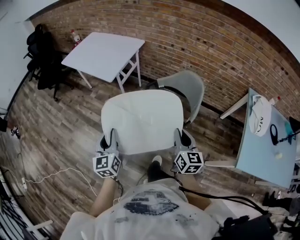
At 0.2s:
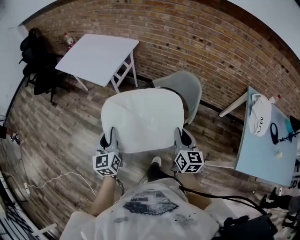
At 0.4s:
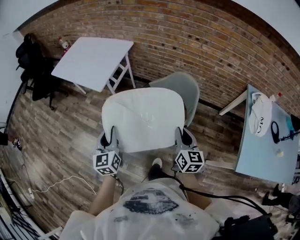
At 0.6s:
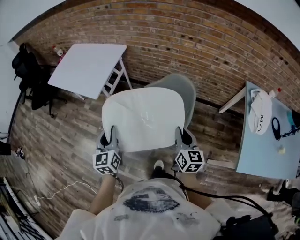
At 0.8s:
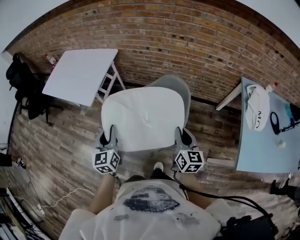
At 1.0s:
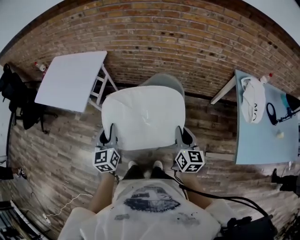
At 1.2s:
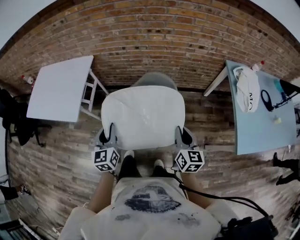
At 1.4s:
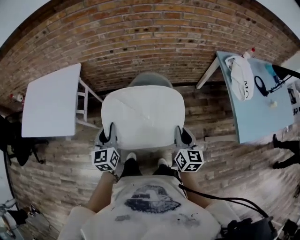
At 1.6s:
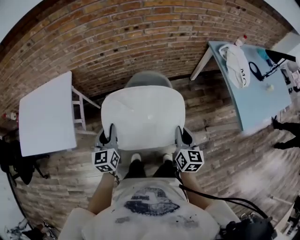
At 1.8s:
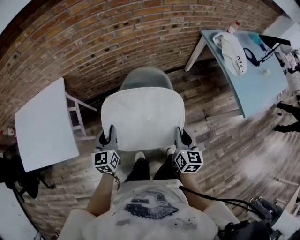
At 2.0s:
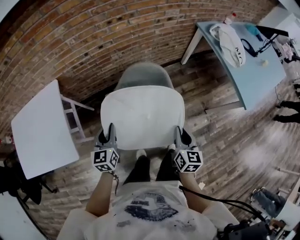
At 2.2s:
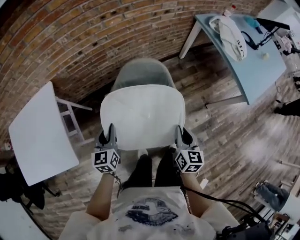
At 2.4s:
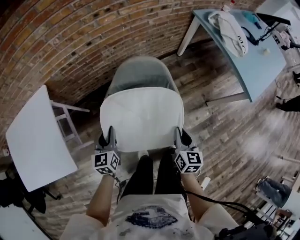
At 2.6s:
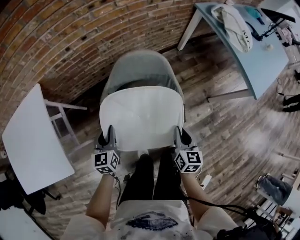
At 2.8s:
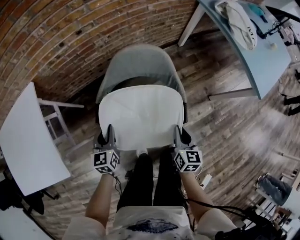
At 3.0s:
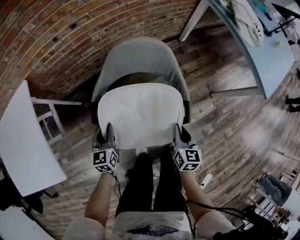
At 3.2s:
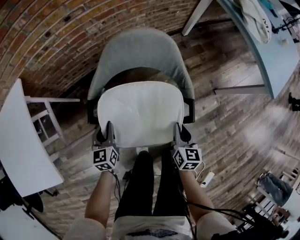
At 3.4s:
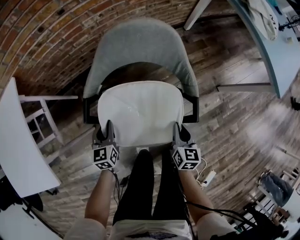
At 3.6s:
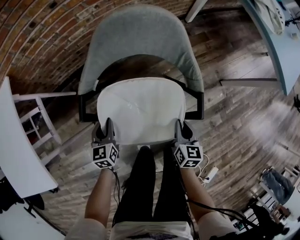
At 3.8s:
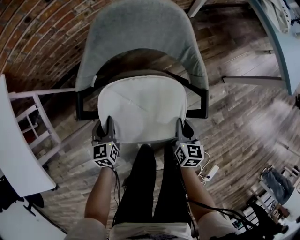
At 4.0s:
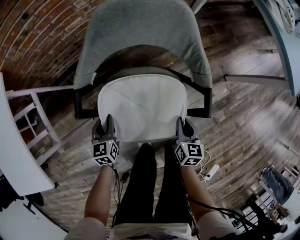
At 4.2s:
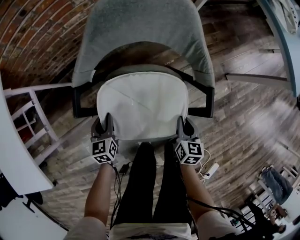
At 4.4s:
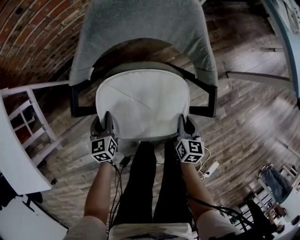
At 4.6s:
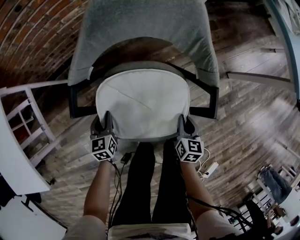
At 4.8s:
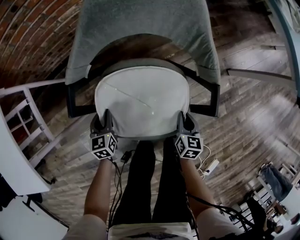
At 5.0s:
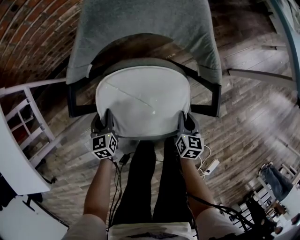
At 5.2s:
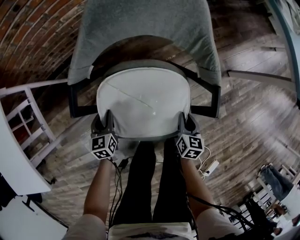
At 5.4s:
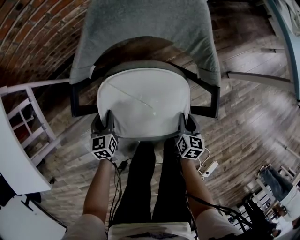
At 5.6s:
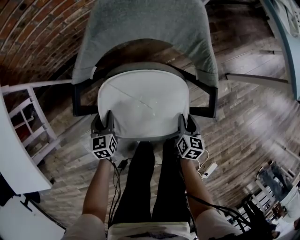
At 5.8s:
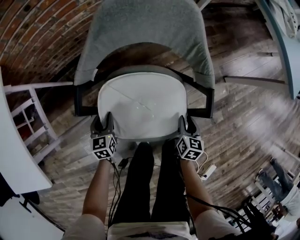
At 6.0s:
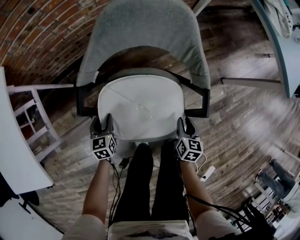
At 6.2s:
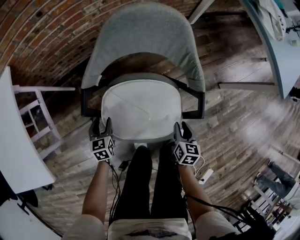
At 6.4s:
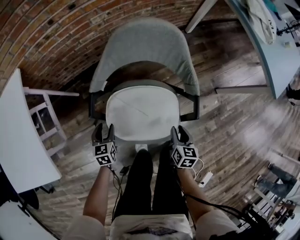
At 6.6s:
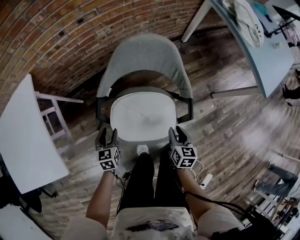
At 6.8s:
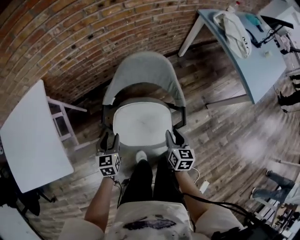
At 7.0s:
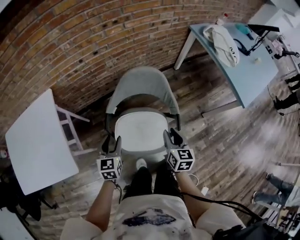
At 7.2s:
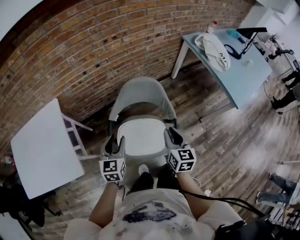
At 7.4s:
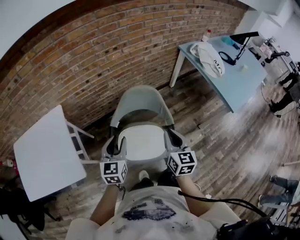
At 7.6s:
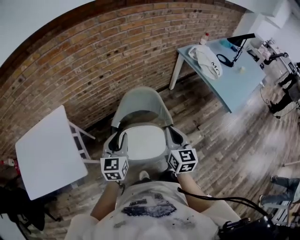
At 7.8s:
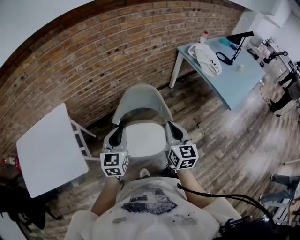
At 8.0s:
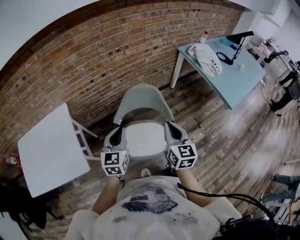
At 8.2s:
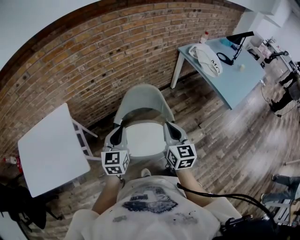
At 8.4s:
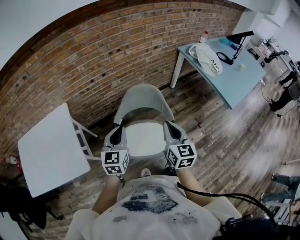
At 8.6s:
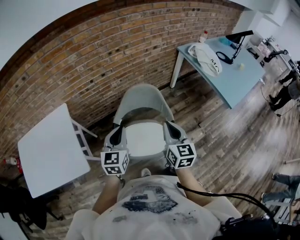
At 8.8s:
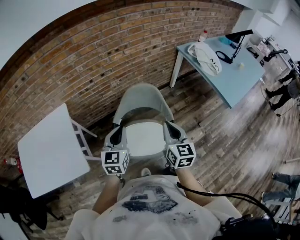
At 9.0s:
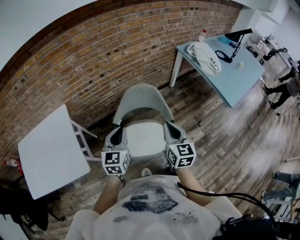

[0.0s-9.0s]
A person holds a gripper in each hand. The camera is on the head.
0.0s to 1.6s: The right gripper shifts by about 20 cm, and changes its angle by approximately 40 degrees, while the left gripper changes place by approximately 40 cm, and turns by approximately 40 degrees.
1.6s to 3.0s: Both grippers move downward, about 30 cm.
3.0s to 4.4s: The grippers both shift downward by approximately 20 cm.
4.4s to 6.0s: The right gripper opens up.
6.0s to 7.6s: Both grippers move upward, roughly 60 cm. The right gripper angles its fingers upward, by approximately 30 degrees, and closes; the left gripper swivels about 30 degrees.
7.6s to 9.0s: The left gripper closes up.

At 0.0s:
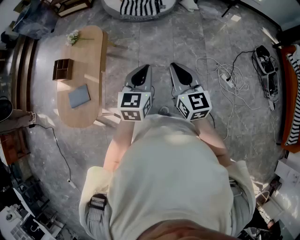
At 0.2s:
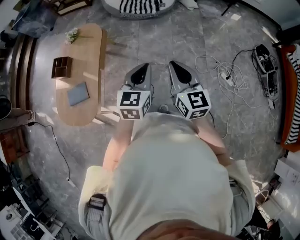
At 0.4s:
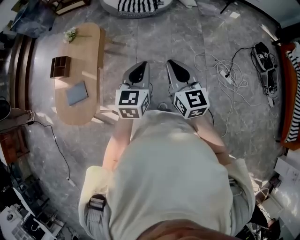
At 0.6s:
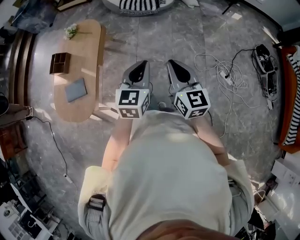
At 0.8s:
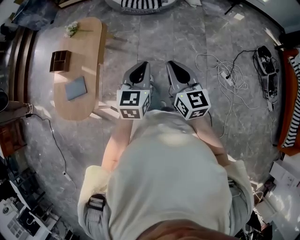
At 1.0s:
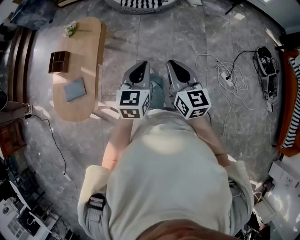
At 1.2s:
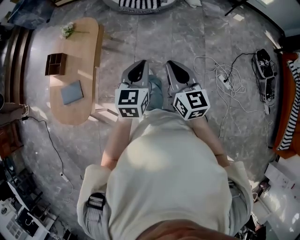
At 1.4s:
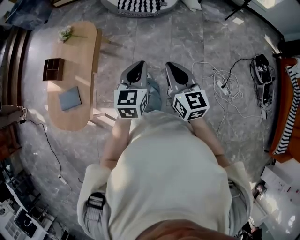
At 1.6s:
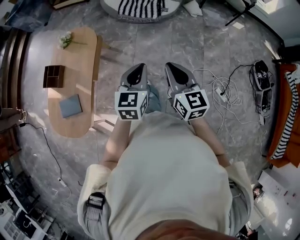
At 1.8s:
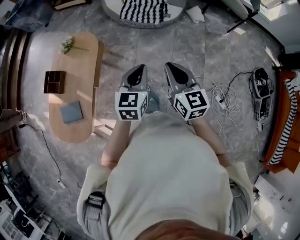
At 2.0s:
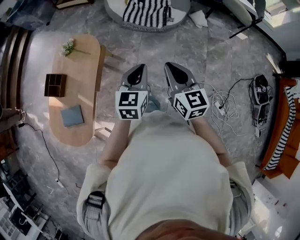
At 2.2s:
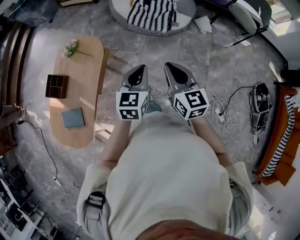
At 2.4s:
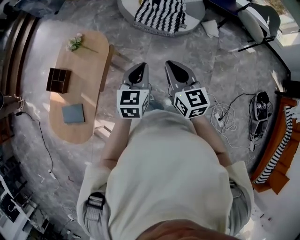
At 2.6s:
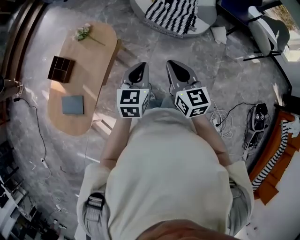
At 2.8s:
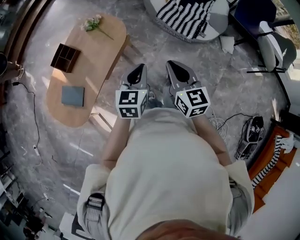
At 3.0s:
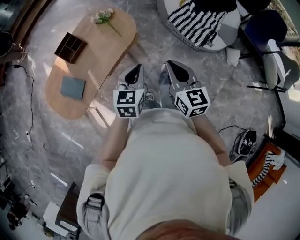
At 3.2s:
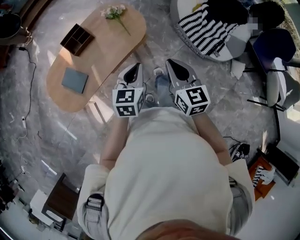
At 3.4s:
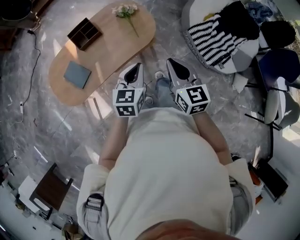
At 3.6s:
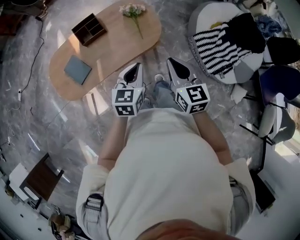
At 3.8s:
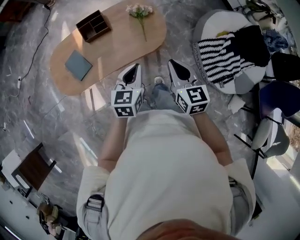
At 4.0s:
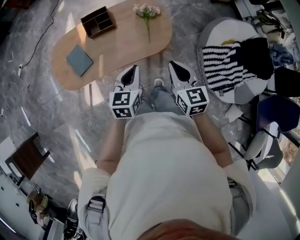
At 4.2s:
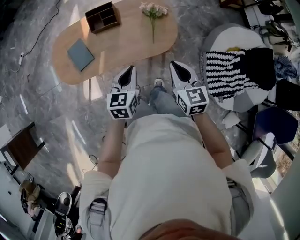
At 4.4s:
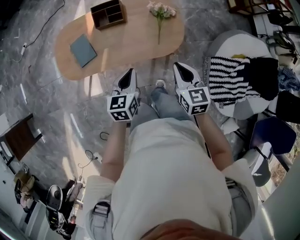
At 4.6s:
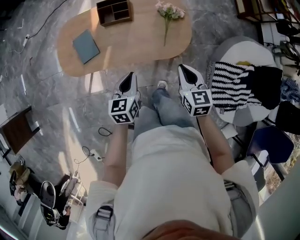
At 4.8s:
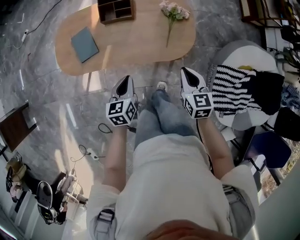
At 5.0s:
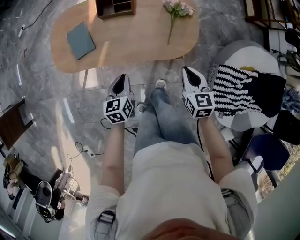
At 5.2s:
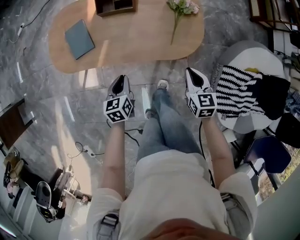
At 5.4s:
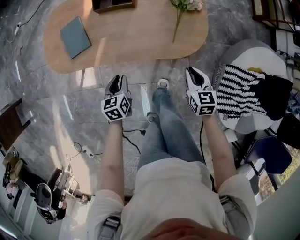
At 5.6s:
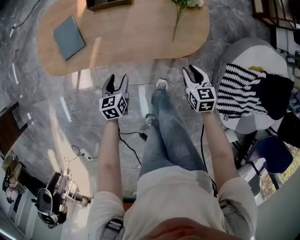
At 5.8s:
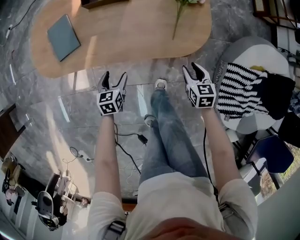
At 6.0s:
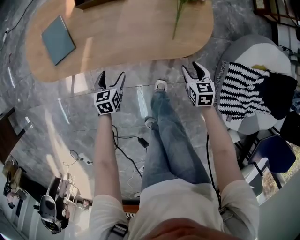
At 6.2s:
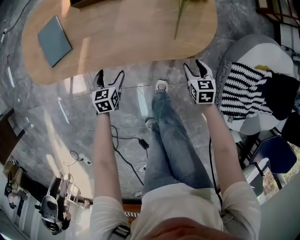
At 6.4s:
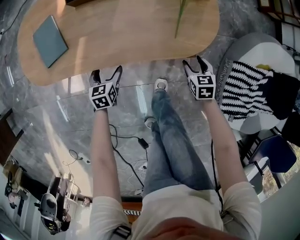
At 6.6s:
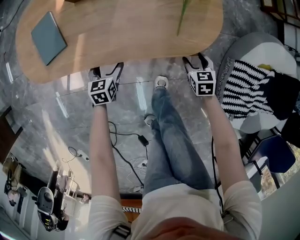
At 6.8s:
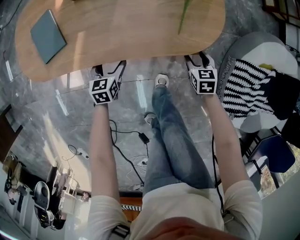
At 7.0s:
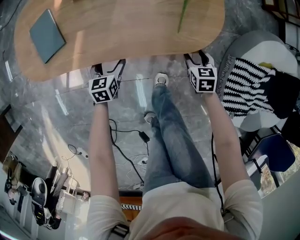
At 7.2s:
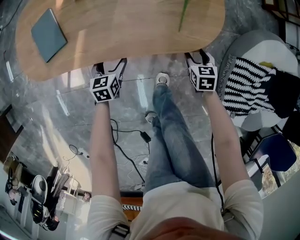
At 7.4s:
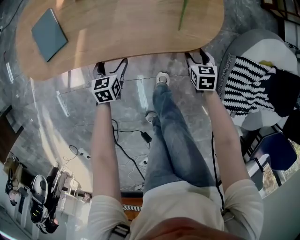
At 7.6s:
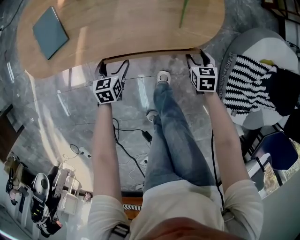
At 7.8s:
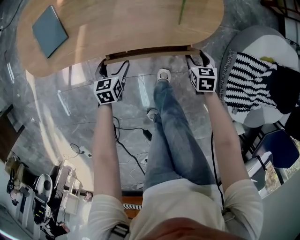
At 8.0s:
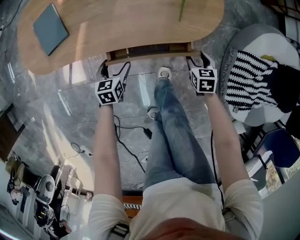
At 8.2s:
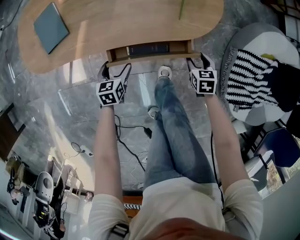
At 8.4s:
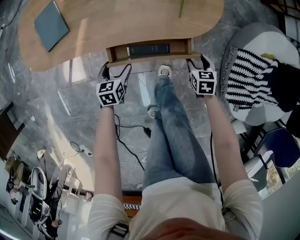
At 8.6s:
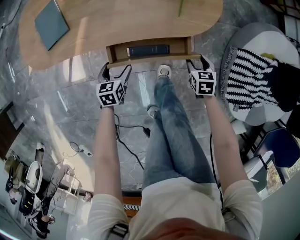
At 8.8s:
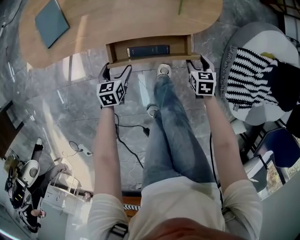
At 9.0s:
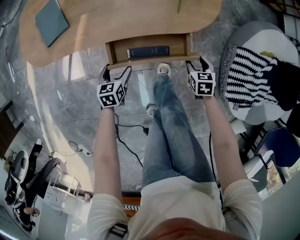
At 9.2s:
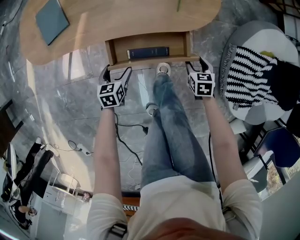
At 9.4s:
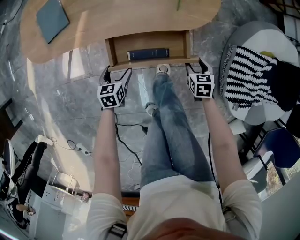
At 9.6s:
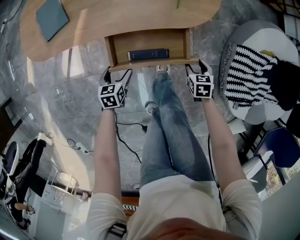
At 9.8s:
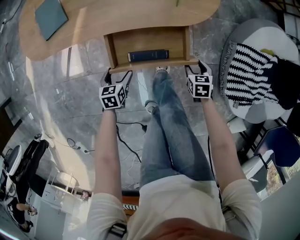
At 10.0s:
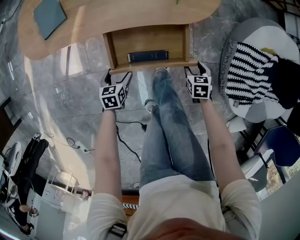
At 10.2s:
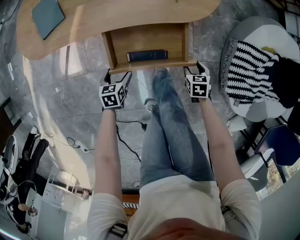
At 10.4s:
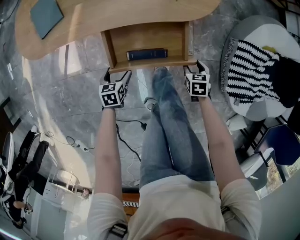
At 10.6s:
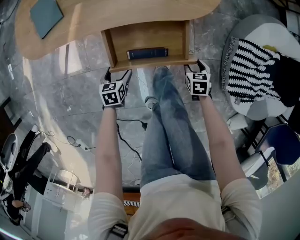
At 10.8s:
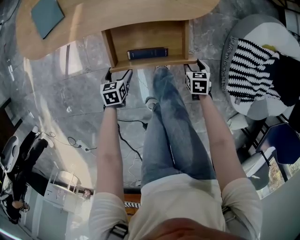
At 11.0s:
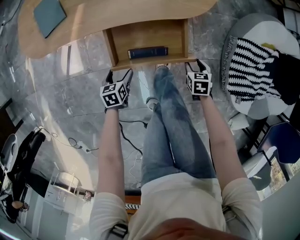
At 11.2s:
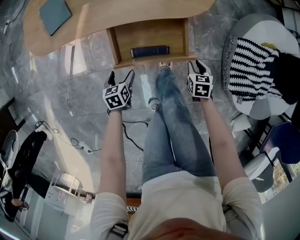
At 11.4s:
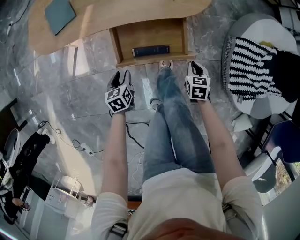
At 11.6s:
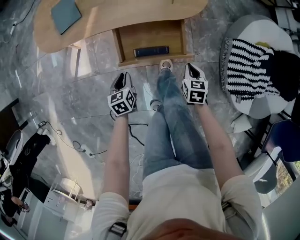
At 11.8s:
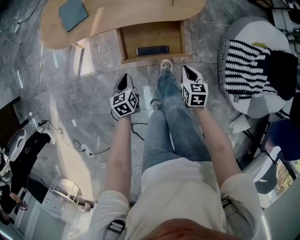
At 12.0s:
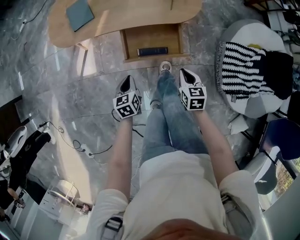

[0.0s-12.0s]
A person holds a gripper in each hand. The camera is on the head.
0.0s to 1.6s: Both grippers travel together forward, about 15 cm.
1.6s to 3.0s: The left gripper ends up approximately 30 cm from where it was, and changes its angle by about 30 degrees. The right gripper changes place by roughly 30 cm, and swivels about 30 degrees.
3.0s to 4.4s: The left gripper ends up roughly 20 cm from where it was, and rotates roughly 50 degrees; the right gripper changes place by approximately 30 cm, and turns by approximately 40 degrees.
4.4s to 6.0s: Both grippers travel together downward, roughly 40 cm. The right gripper changes its angle by about 20 degrees, and opens; the left gripper opens its fingers.
6.0s to 7.6s: The right gripper goes approximately 5 cm downward.
7.6s to 9.0s: The grippers both shift backward by some 10 cm.
9.0s to 10.4s: The two grippers go some 5 cm backward.
10.4s to 12.0s: The two grippers go roughly 20 cm upward. The left gripper changes its angle by roughly 20 degrees, and closes; the right gripper turns by some 20 degrees, and closes up.

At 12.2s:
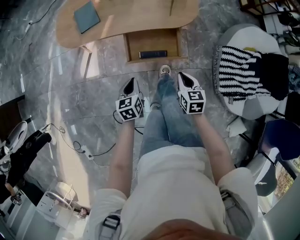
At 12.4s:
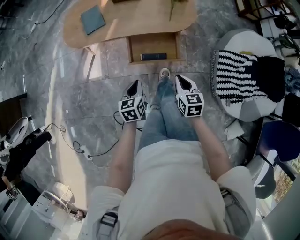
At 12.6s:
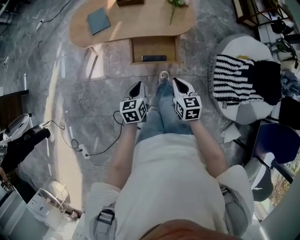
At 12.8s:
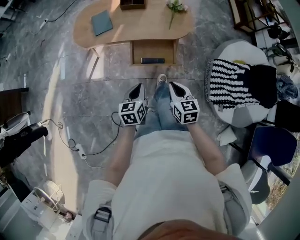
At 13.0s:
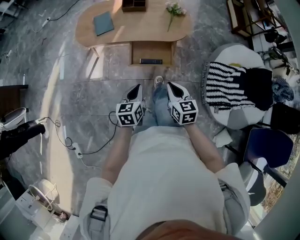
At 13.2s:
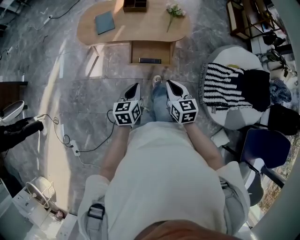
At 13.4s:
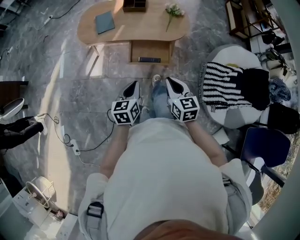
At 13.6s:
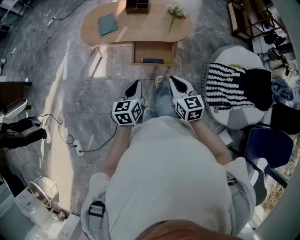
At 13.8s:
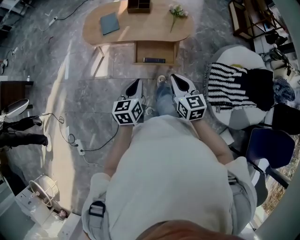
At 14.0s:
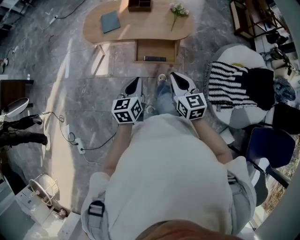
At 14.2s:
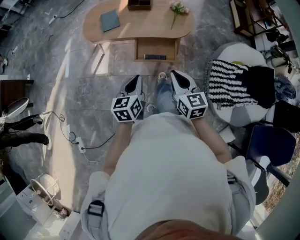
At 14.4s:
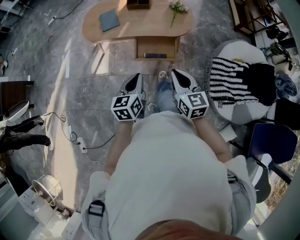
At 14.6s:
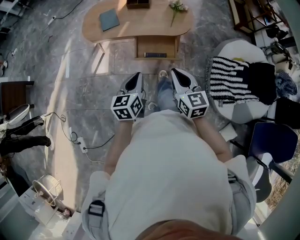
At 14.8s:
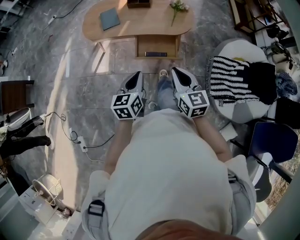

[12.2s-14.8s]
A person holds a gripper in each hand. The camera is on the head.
12.2s to 13.4s: The left gripper goes some 25 cm upward and backward. The right gripper goes about 25 cm upward.
13.4s to 14.8s: The right gripper is displaced upward by roughly 5 cm.
